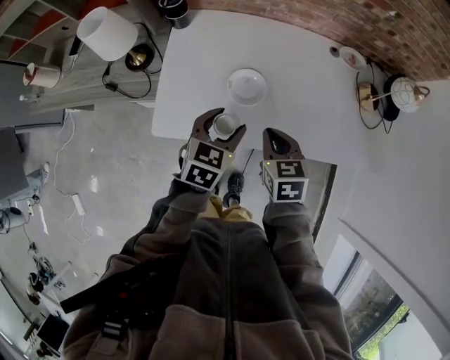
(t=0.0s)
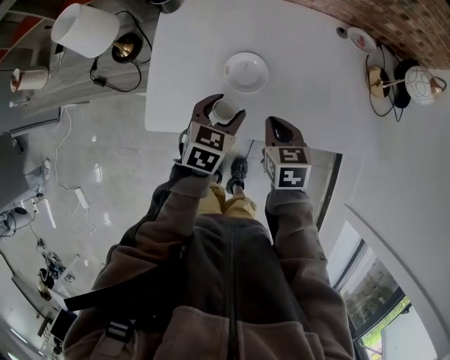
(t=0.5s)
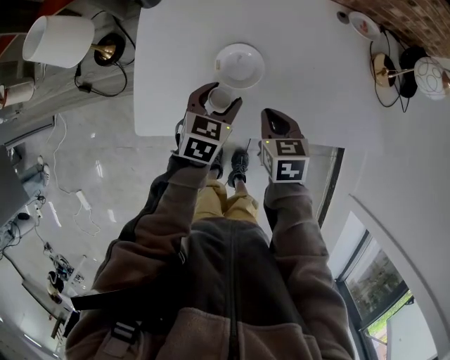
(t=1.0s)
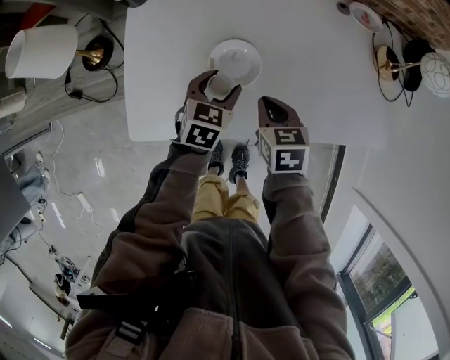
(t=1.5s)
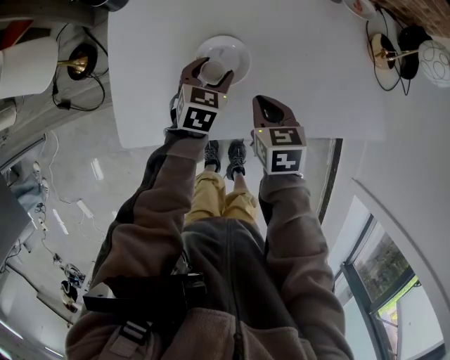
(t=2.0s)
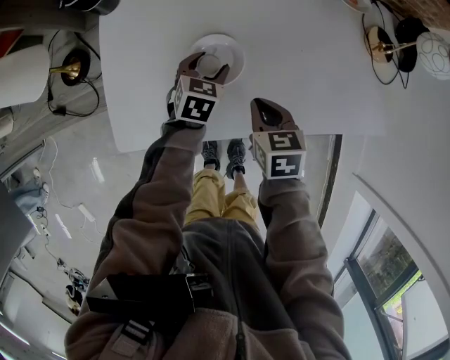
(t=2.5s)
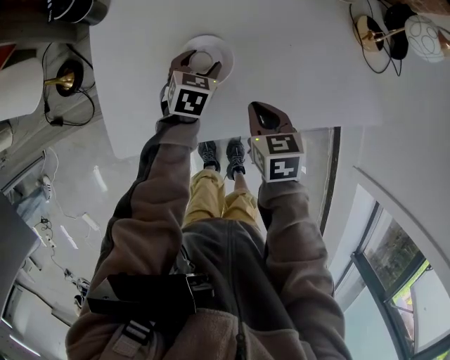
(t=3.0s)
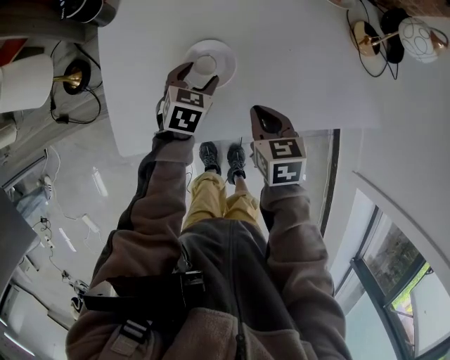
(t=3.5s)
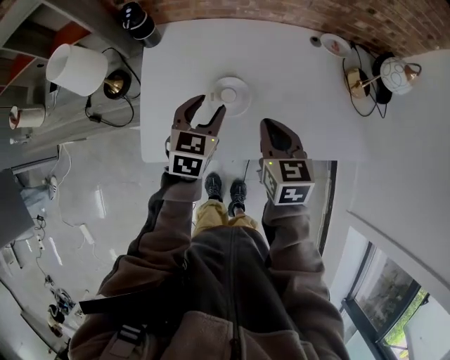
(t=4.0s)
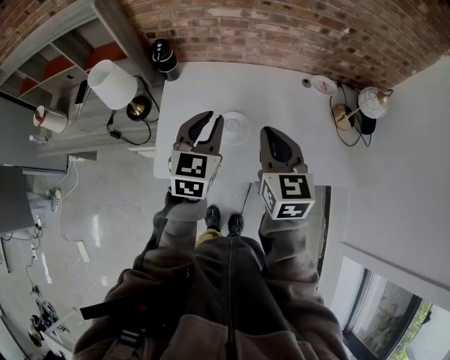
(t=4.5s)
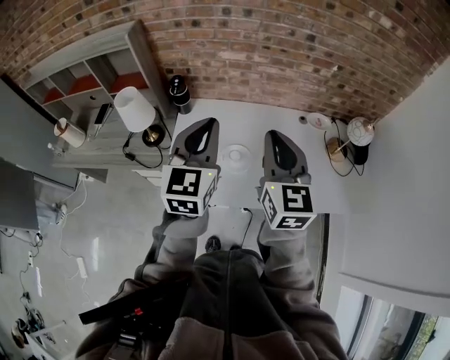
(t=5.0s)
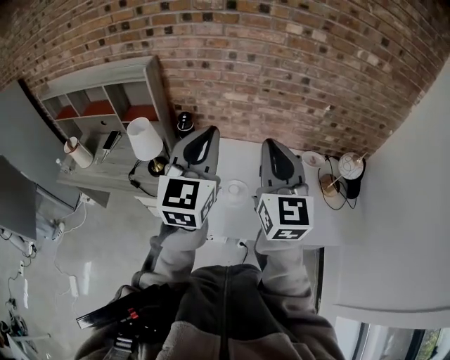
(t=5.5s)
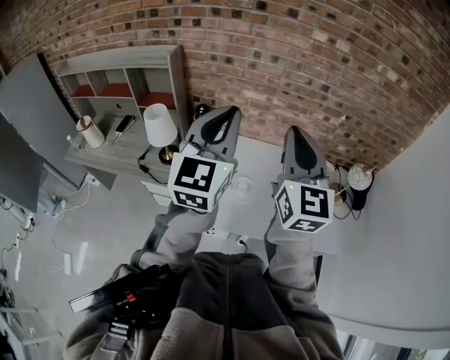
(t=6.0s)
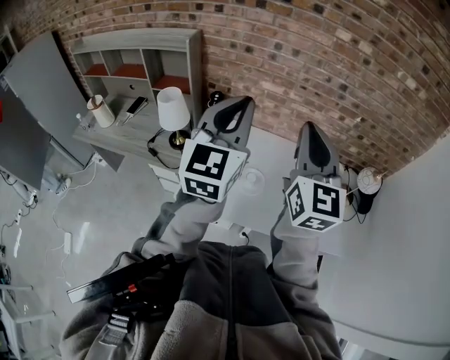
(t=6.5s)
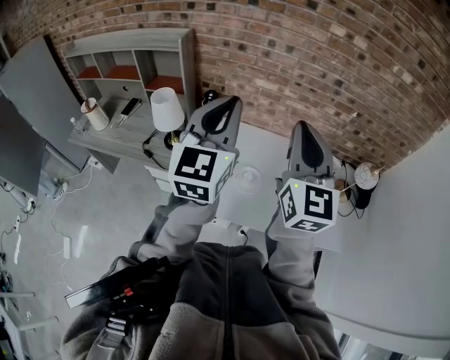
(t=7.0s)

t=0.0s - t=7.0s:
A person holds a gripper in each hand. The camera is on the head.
t=0.0s - t=2.0s: The left gripper goes some 25 cm downward and forward. Meanwhile the right gripper travels downward and forward by approximately 15 cm.
t=2.0s - t=3.5s: The grippers stay close to where they were, moving slightly.
t=3.5s - t=5.0s: Both grippers travel together upward, about 40 cm. The right gripper points its fingers about 50 degrees further upward. Meanwhile the left gripper points its fingers approximately 50 degrees further upward, and closes.
t=5.0s - t=7.0s: Both grippers travel together upward, roughly 10 cm.

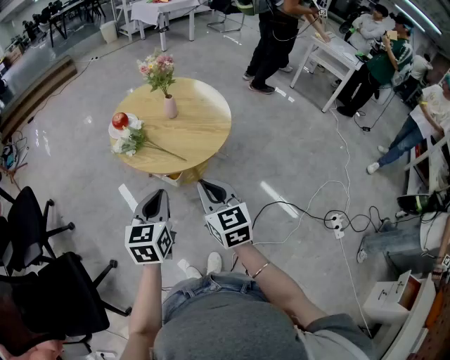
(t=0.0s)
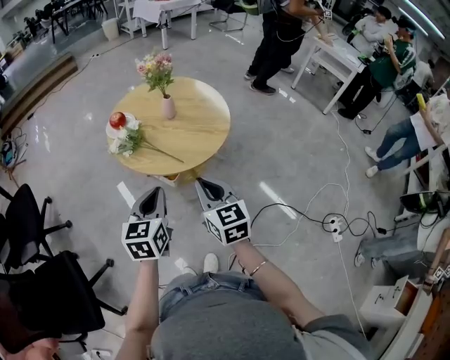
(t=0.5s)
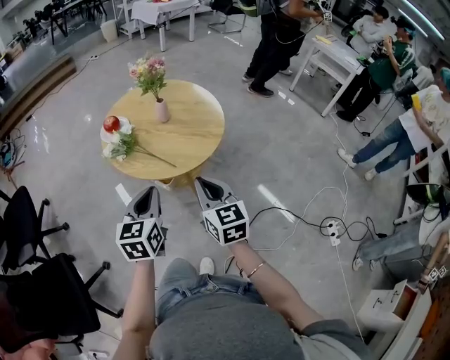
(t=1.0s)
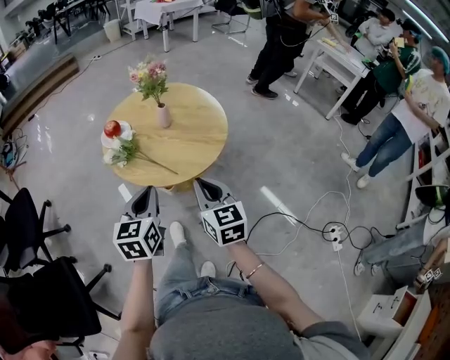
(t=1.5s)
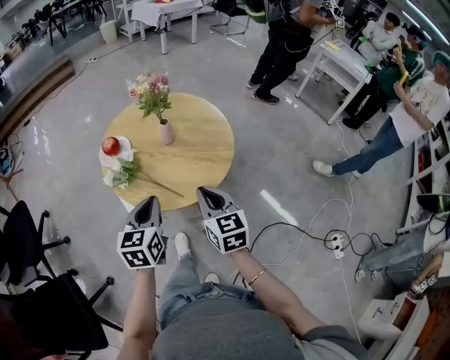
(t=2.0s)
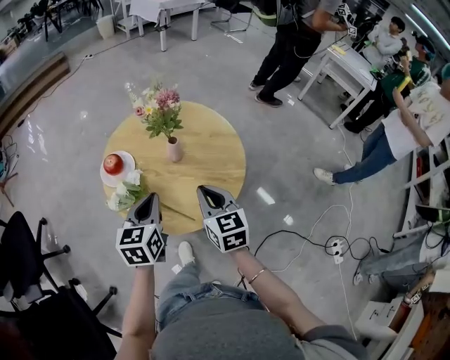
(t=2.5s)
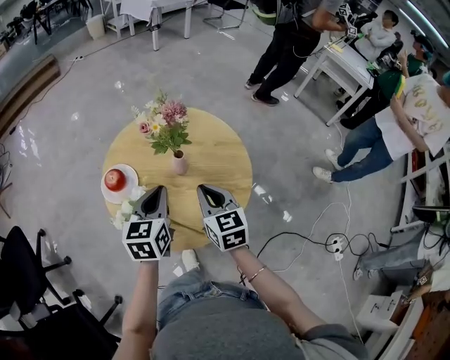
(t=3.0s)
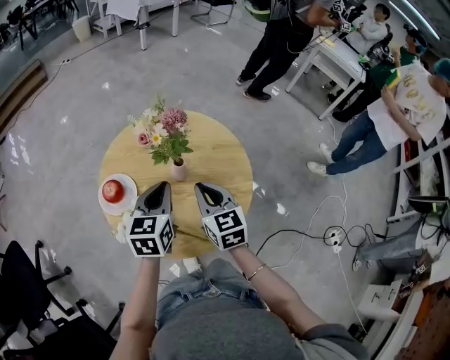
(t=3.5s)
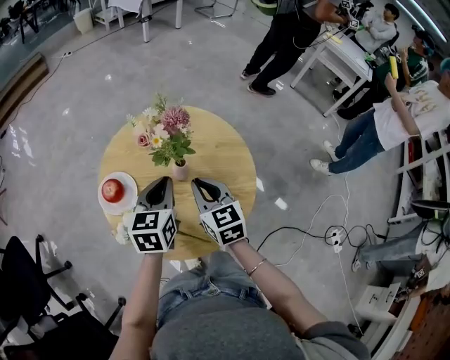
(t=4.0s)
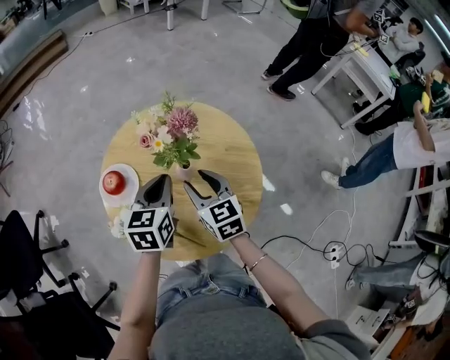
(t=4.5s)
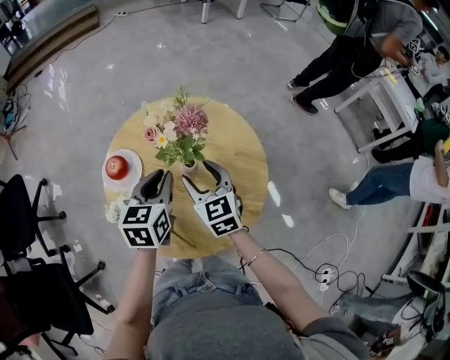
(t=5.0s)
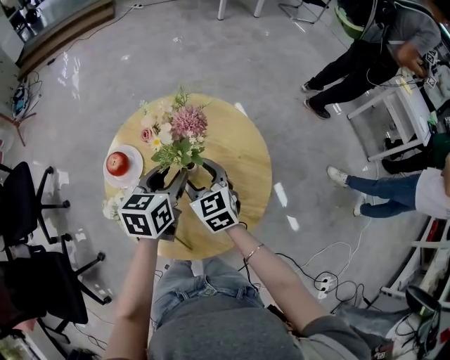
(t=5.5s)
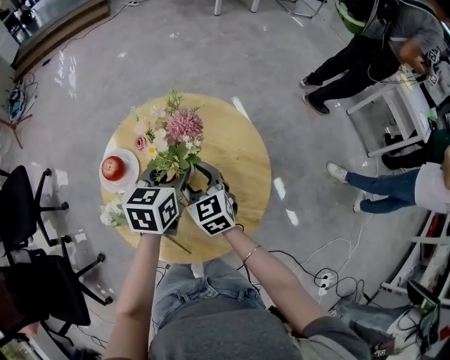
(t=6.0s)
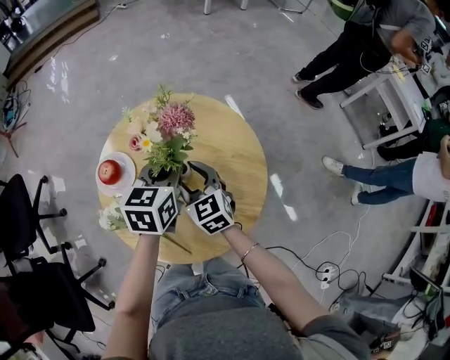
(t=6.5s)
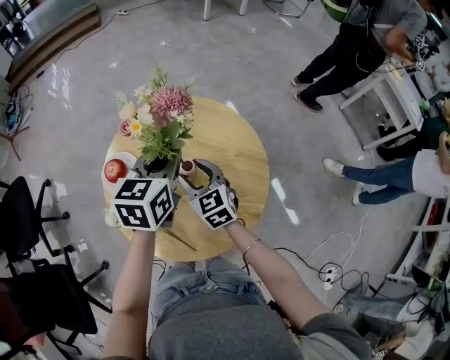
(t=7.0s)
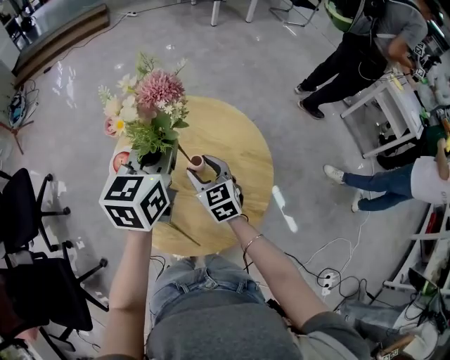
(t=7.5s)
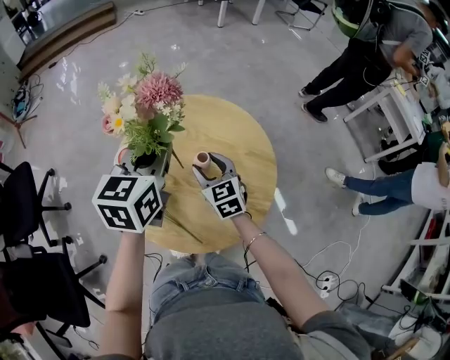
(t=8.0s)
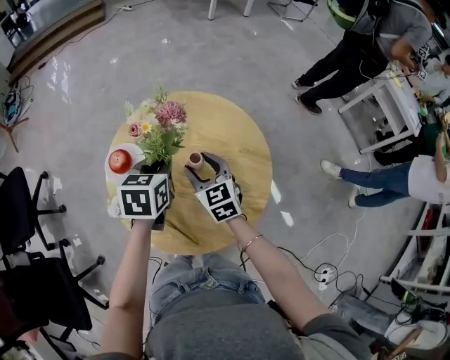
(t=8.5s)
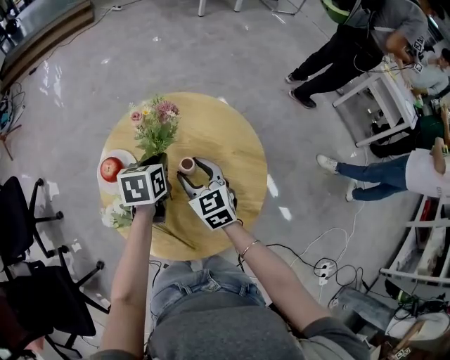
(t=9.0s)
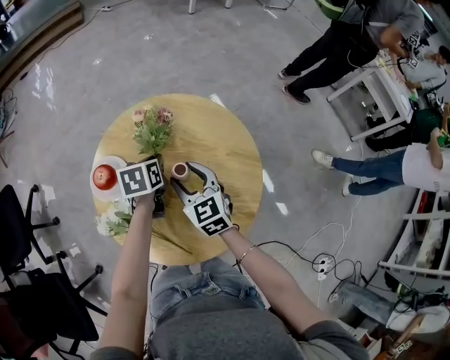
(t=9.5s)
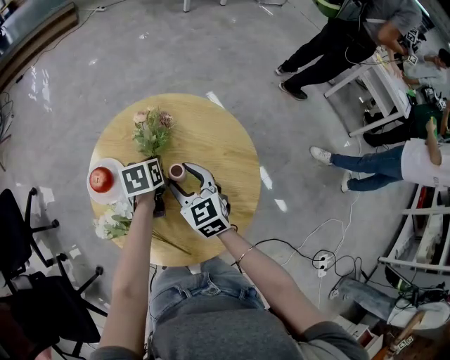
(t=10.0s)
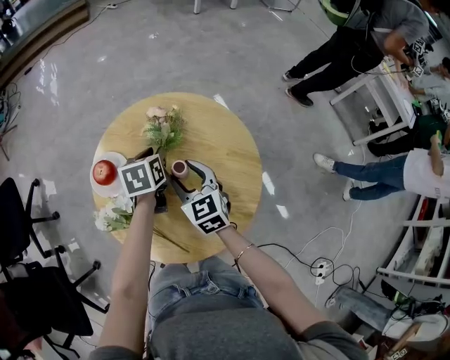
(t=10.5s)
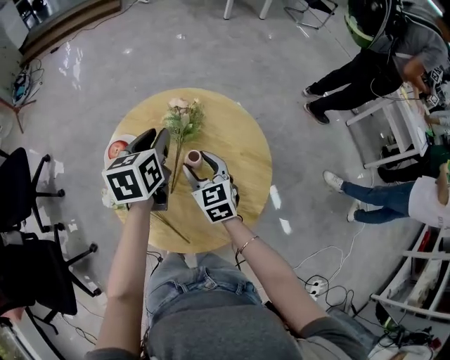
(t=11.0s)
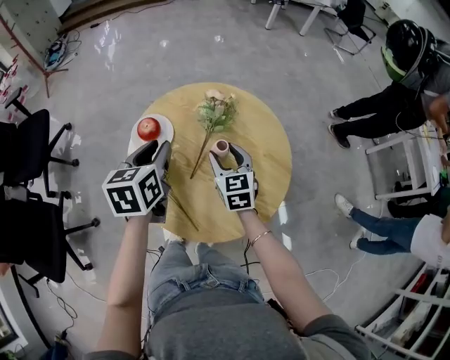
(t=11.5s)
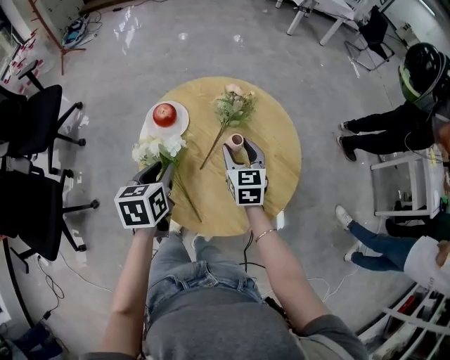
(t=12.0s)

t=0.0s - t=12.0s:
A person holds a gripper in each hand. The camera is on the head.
t=0.0s - t=2.0s: The grippers both shift forward by approximately 15 cm.
t=2.0s - t=4.0s: Both grippers travel together forward, approximately 25 cm.
t=4.0s - t=6.0s: Both grippers move forward, some 5 cm. The right gripper turns by some 30 degrees, and opens its fingers. Meanwhile the left gripper opens up.
t=6.0s - t=8.0s: The left gripper shifts roughly 15 cm upward and to the left, and closes its fingers.
t=8.0s - t=10.0s: The left gripper is displaced downward by some 25 cm, and points its fingers some 30 degrees further downward.
t=10.0s - t=12.0s: The left gripper heads backward, to the left and upward, covering about 25 cm, and swivels some 30 degrees.

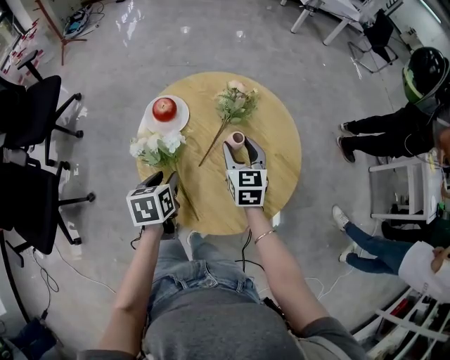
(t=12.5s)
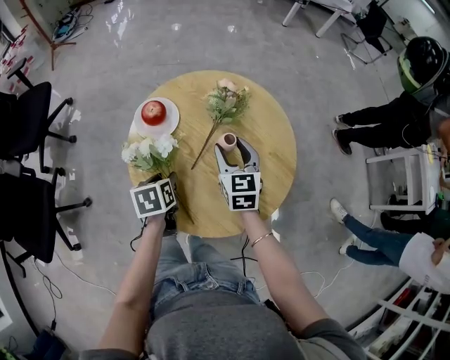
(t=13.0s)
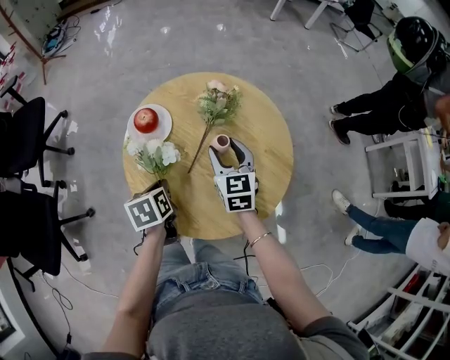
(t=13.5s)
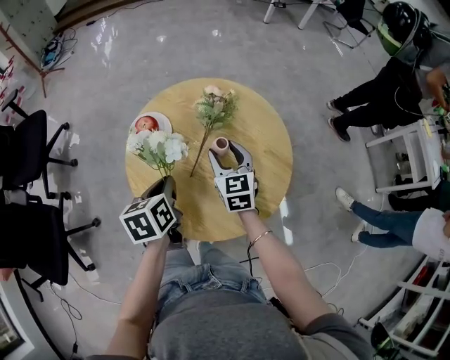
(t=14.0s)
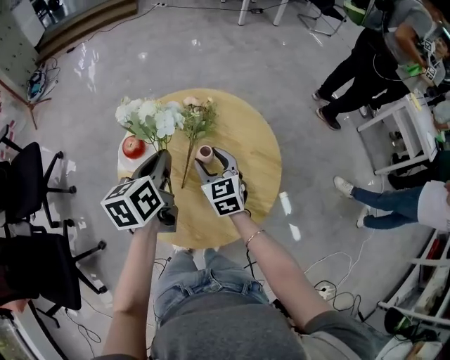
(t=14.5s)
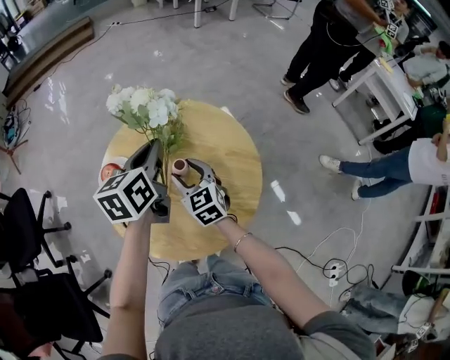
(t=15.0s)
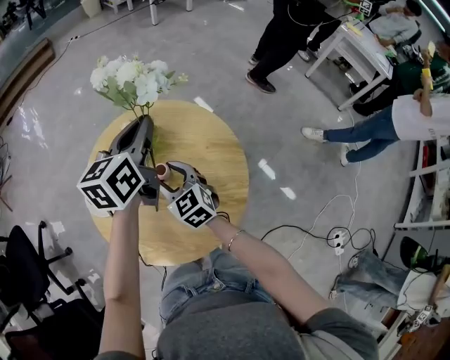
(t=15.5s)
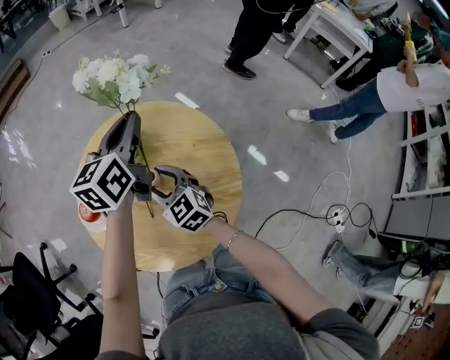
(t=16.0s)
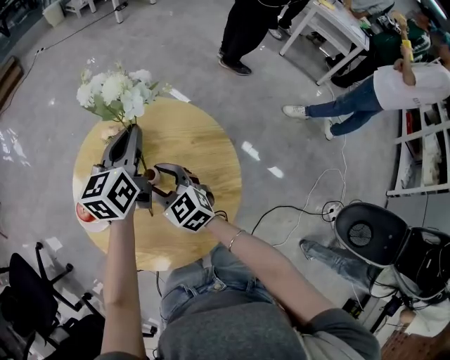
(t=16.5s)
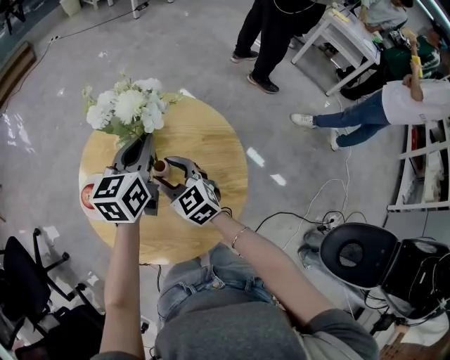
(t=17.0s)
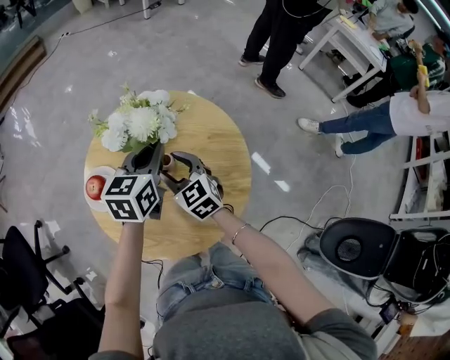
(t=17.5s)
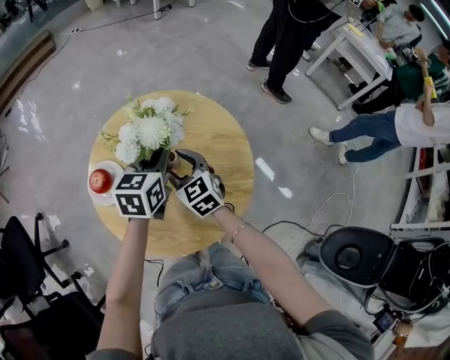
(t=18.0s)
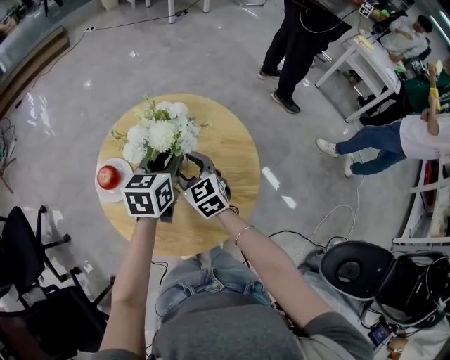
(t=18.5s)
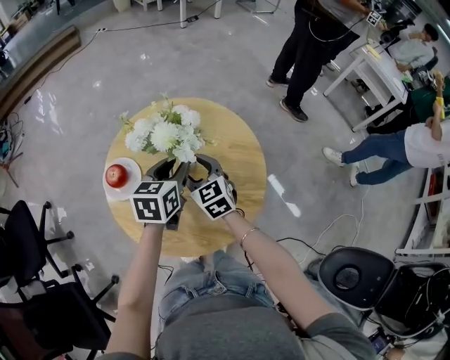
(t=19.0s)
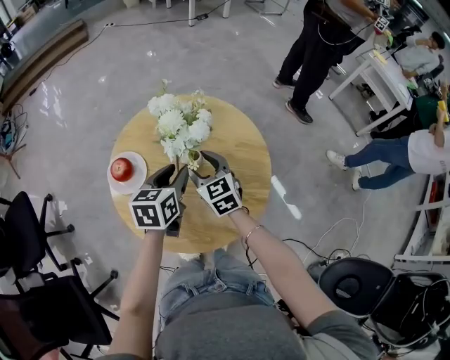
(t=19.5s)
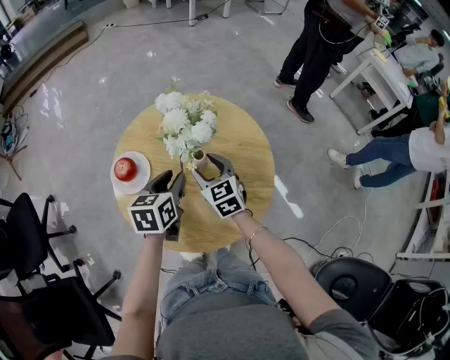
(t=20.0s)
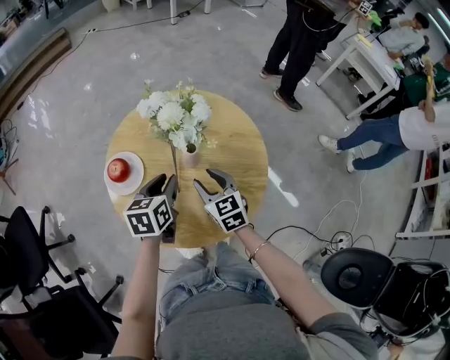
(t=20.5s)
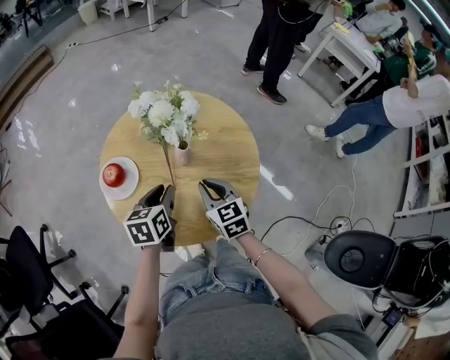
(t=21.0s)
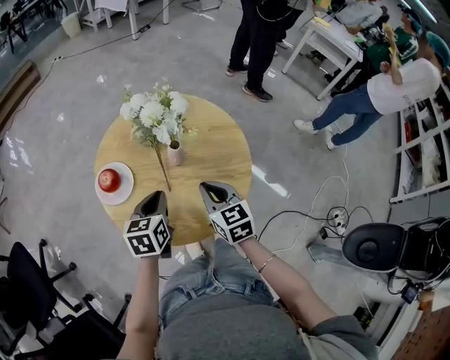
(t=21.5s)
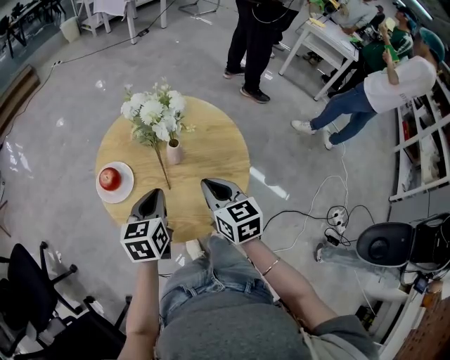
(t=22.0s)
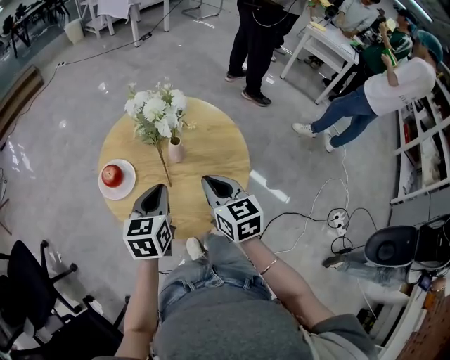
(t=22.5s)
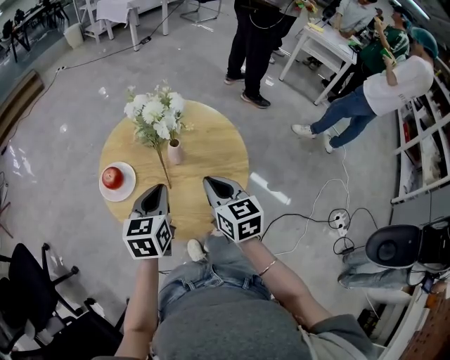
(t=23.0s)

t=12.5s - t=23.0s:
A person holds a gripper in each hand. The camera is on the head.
t=12.5s - t=14.5s: The left gripper heads upward, forward and to the right, covering approximately 20 cm, turns by about 30 degrees, and closes its fingers.
t=14.5s - t=16.5s: The left gripper heads to the right and forward, covering some 15 cm, and turns by some 40 degrees.
t=16.5s - t=19.0s: The left gripper heads backward and downward, covering approximately 10 cm, and opens up.
t=19.0s - t=21.0s: The right gripper shifts roughly 10 cm backward, and closes its fingers, while the left gripper travels backward, downward and to the left by roughly 15 cm.
t=21.0s - t=23.0s: Both grippers move upward, about 10 cm. The left gripper closes.
